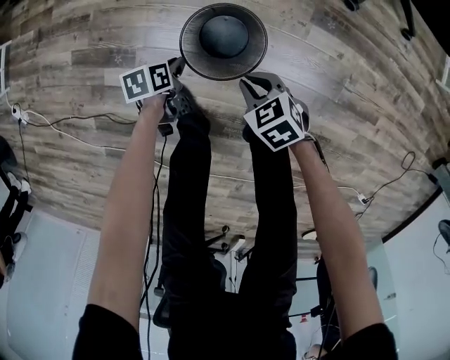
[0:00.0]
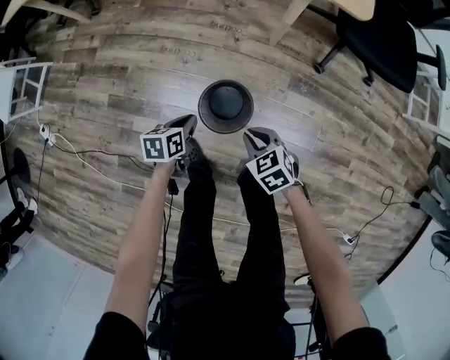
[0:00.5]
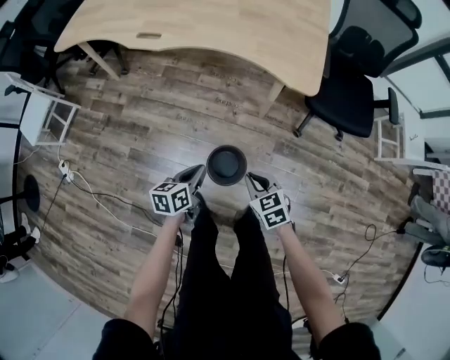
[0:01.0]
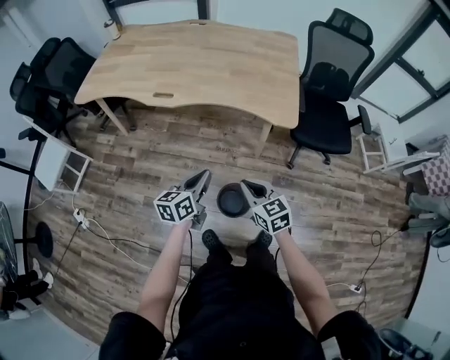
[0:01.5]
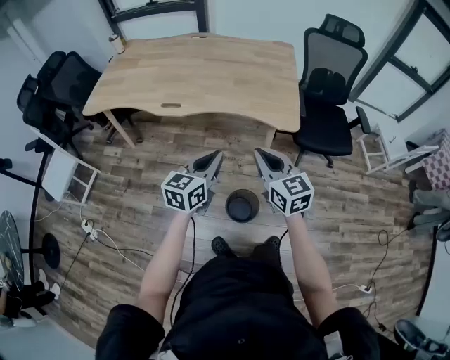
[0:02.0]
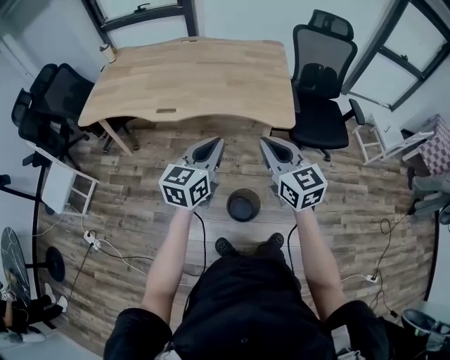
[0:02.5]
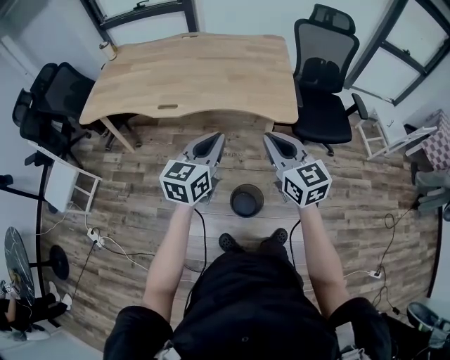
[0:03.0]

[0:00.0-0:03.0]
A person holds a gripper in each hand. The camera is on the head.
0:00.0 to 0:01.5: The grippers both shift upward by about 60 cm. The left gripper tilts its fingers some 40 degrees upward, while the right gripper points its fingers some 30 degrees further upward.
0:01.5 to 0:03.0: The two grippers go roughly 20 cm upward. The left gripper turns by about 30 degrees, while the right gripper turns by roughly 20 degrees.

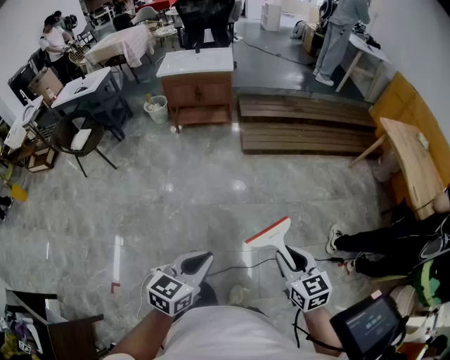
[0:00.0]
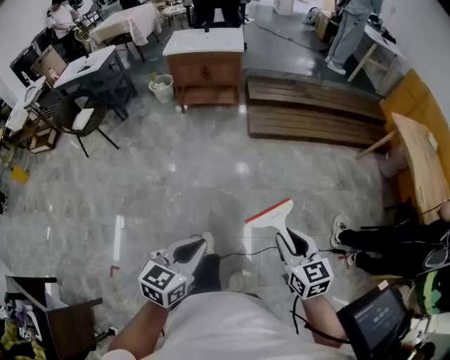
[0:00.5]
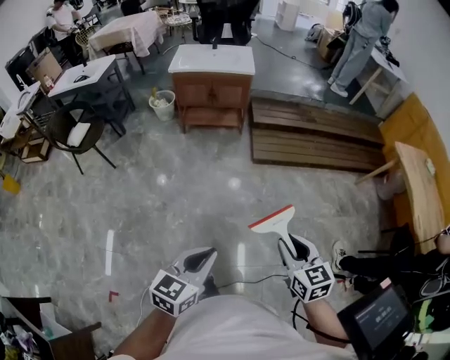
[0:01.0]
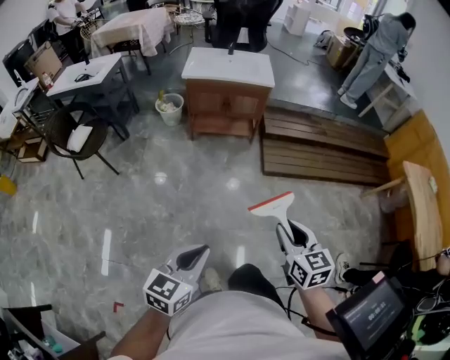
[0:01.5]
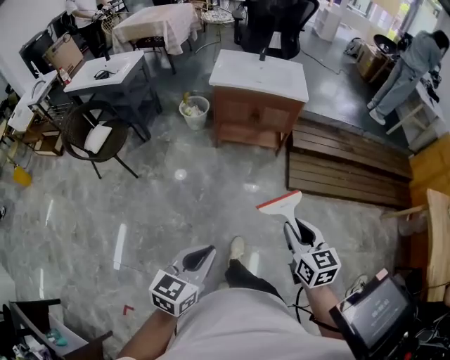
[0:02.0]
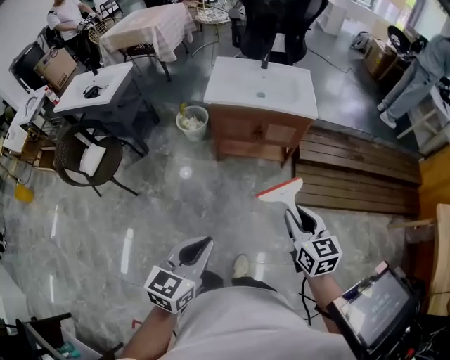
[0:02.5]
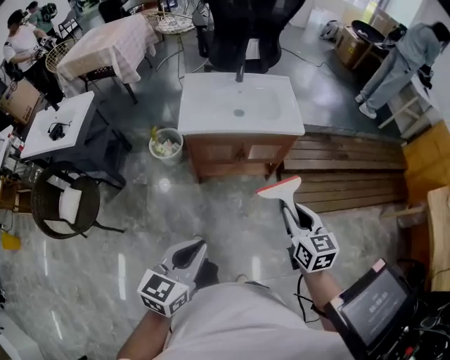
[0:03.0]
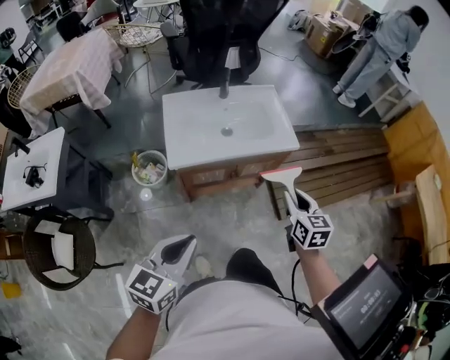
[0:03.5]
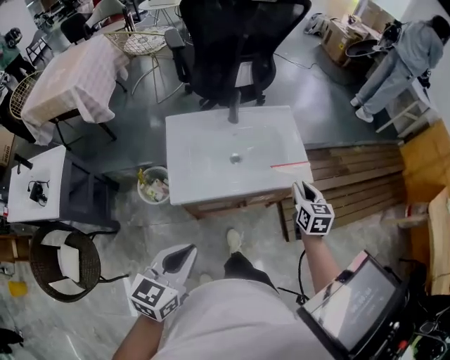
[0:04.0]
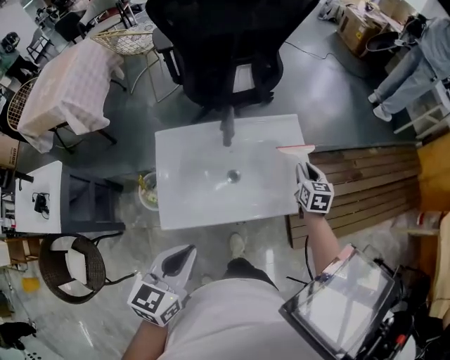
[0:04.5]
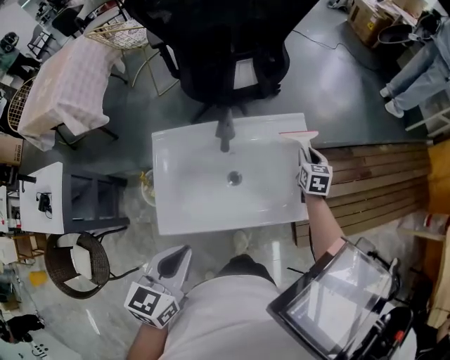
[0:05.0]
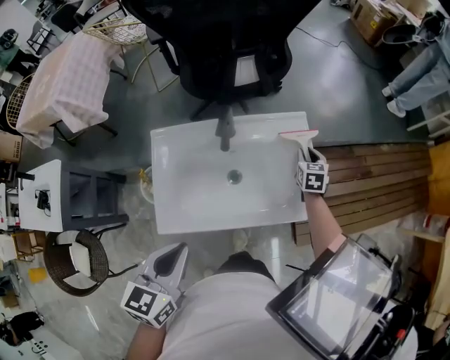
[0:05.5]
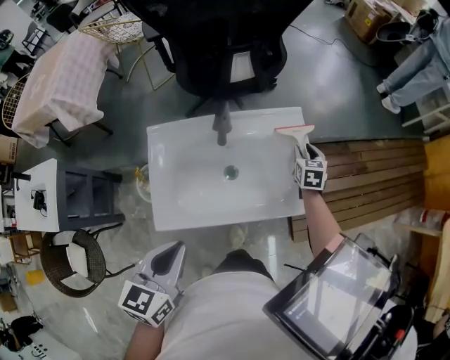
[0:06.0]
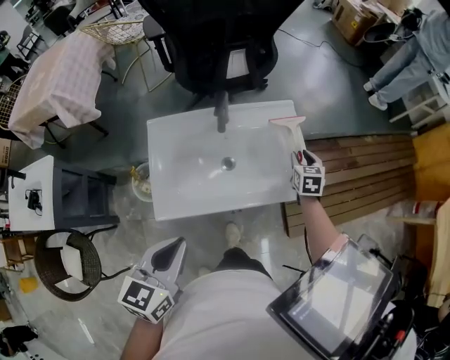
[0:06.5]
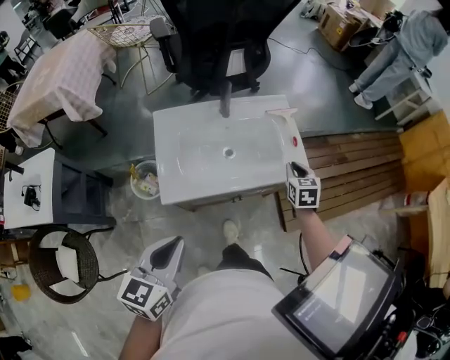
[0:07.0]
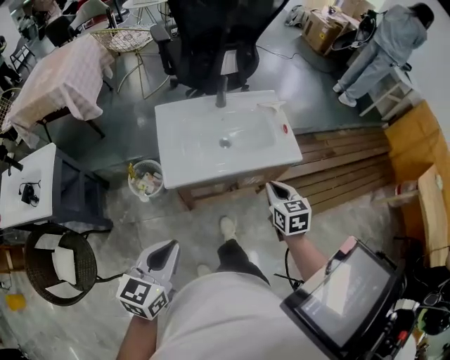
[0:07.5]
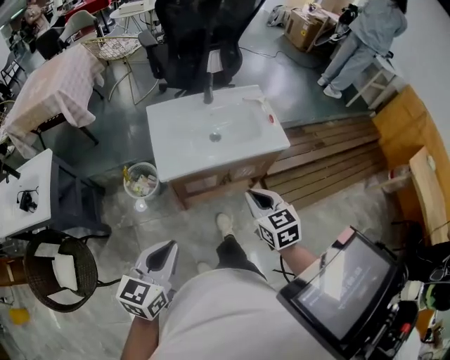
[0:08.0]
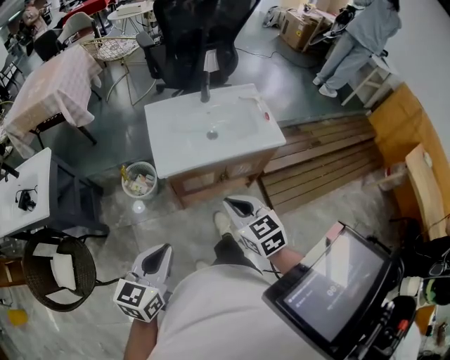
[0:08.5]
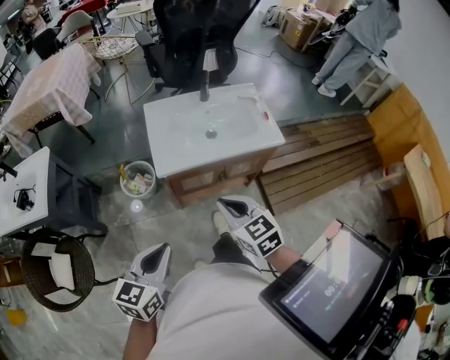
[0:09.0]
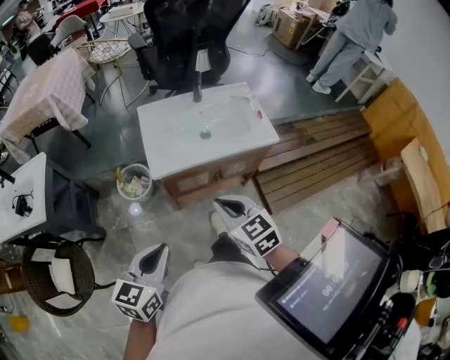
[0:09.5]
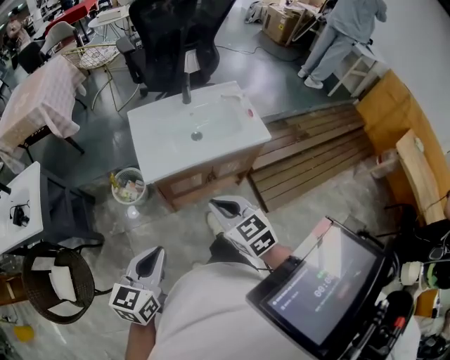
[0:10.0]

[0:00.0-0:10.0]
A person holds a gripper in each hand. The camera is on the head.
0:00.0 to 0:02.0: The pair of grippers is taken forward and to the left, roughly 60 cm.
0:02.0 to 0:04.0: Both grippers are carried forward, approximately 90 cm. The right gripper changes its angle by approximately 30 degrees.
0:04.0 to 0:06.0: Both grippers travel together forward, about 30 cm.
0:06.0 to 0:08.0: The left gripper heads backward, covering some 40 cm. The right gripper is displaced backward by roughly 60 cm, swivels approximately 20 degrees, and closes up.
0:08.0 to 0:10.0: The right gripper travels to the left by about 5 cm.

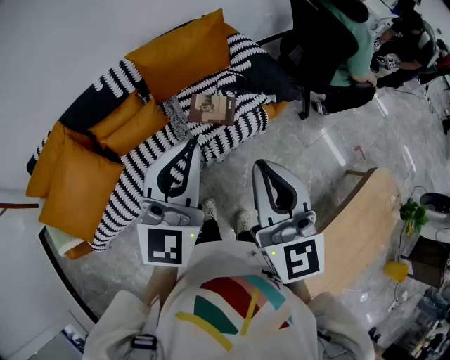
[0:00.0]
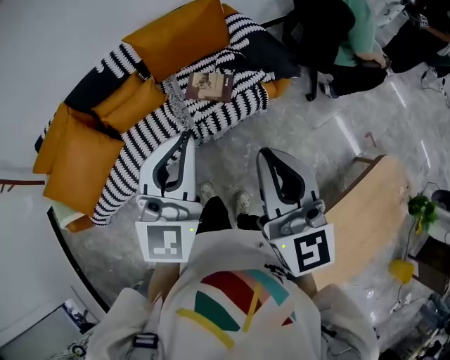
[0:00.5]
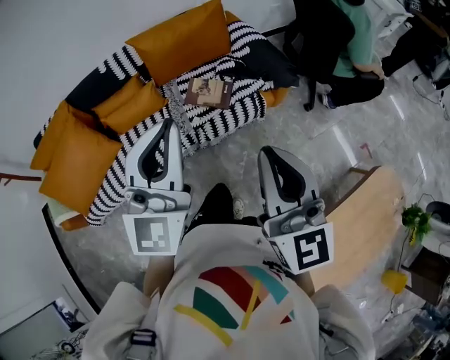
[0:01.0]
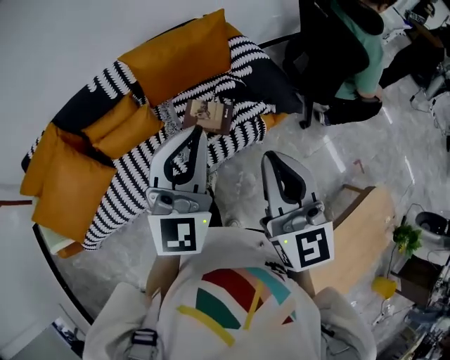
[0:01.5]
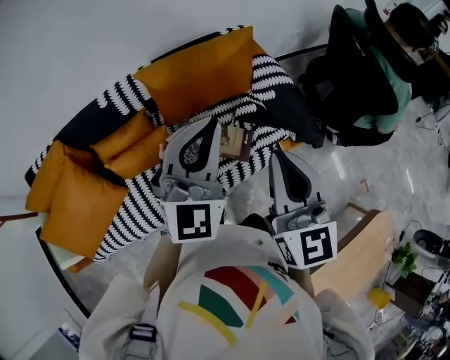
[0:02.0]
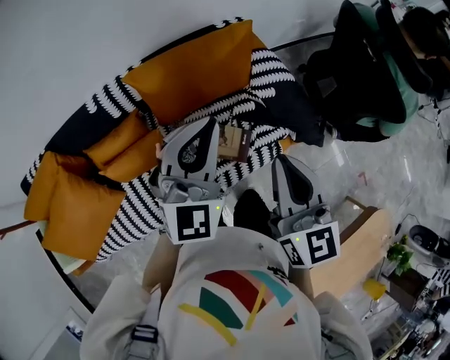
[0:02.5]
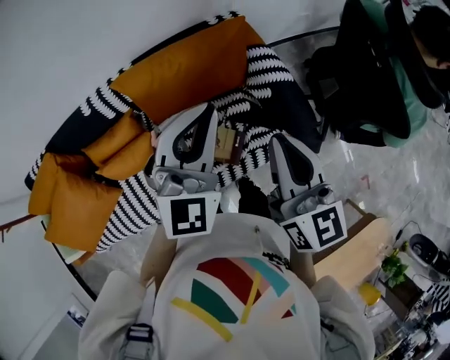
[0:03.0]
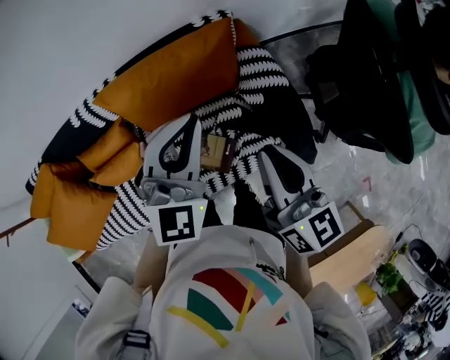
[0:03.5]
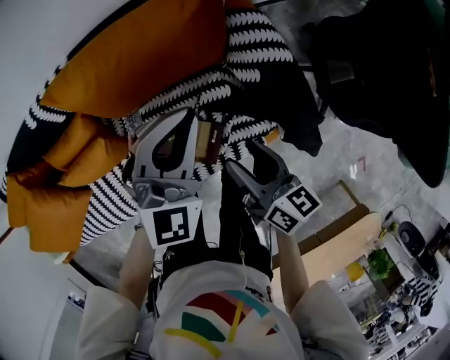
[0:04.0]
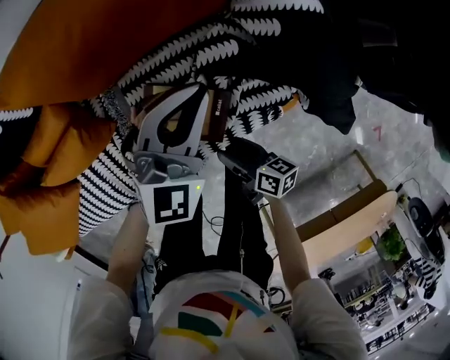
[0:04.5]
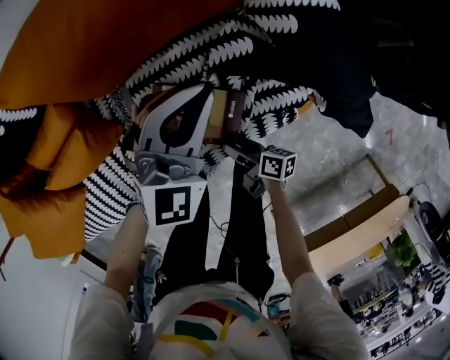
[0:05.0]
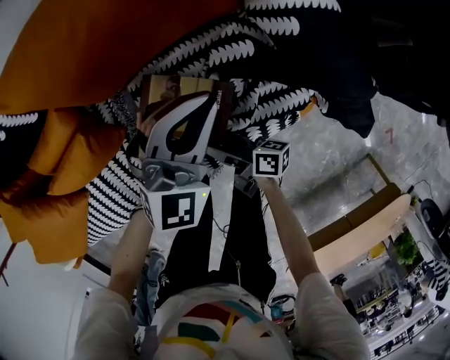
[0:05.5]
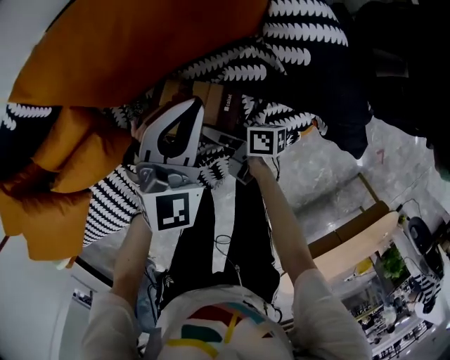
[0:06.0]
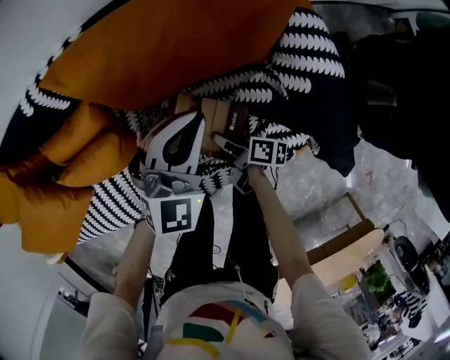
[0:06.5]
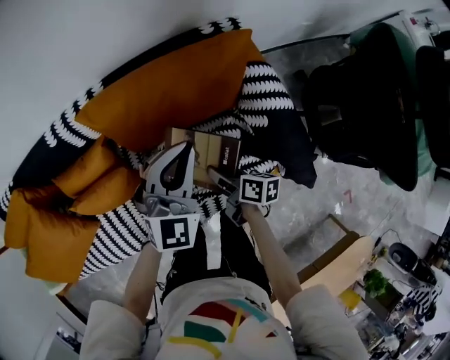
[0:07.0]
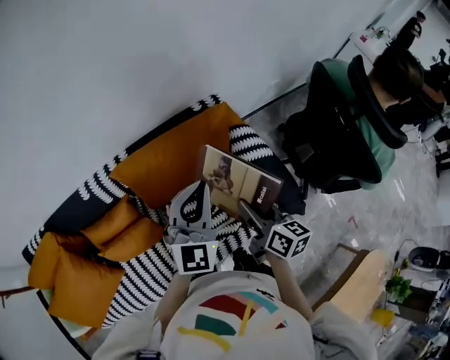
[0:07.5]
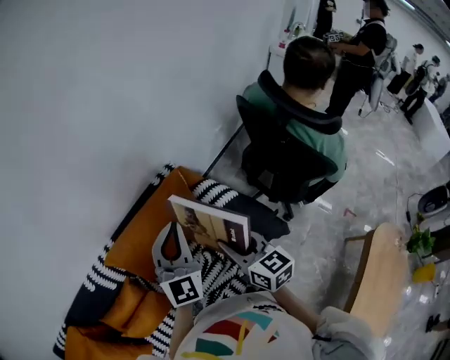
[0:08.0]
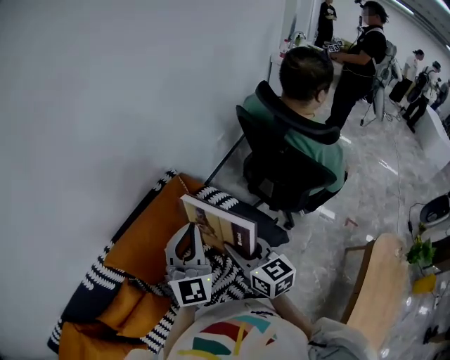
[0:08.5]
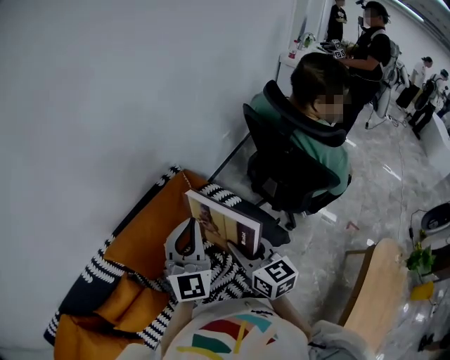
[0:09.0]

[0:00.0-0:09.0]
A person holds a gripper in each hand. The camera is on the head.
0:00.0 to 0:02.0: The grippers both shift forward by roughly 25 cm.
0:02.0 to 0:04.5: The right gripper shifts about 60 cm downward, turns by roughly 70 degrees, and opens up; the left gripper travels downward, forward and to the right by some 40 cm, and turns by approximately 20 degrees.
0:04.5 to 0:07.0: The right gripper moves forward and upward, approximately 25 cm, and closes; the left gripper is displaced upward and to the left by roughly 20 cm.
0:07.0 to 0:09.0: The left gripper goes approximately 20 cm upward. Meanwhile the right gripper travels upward by approximately 30 cm, and changes its angle by approximately 60 degrees.

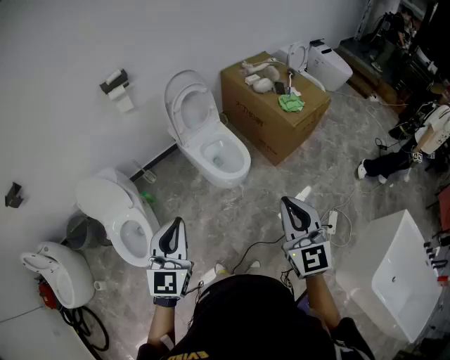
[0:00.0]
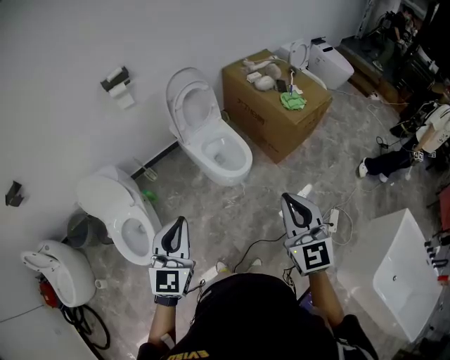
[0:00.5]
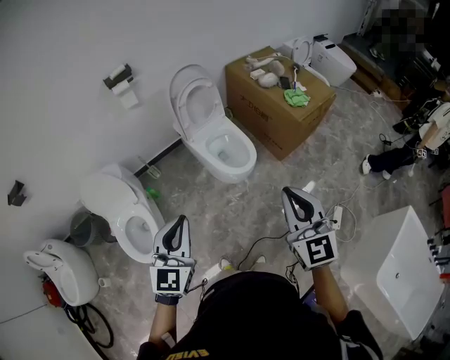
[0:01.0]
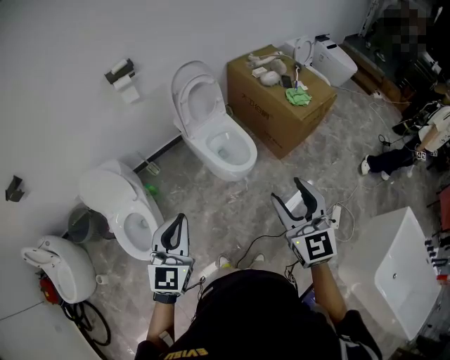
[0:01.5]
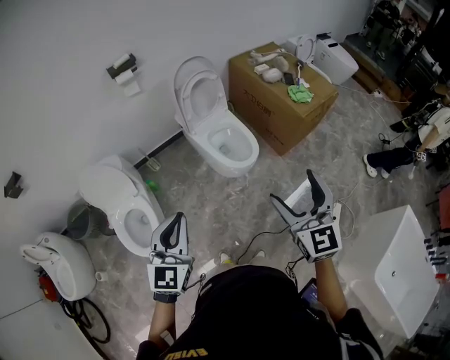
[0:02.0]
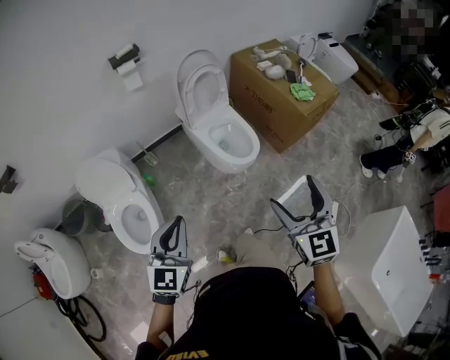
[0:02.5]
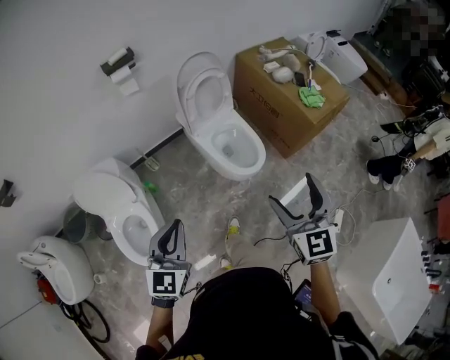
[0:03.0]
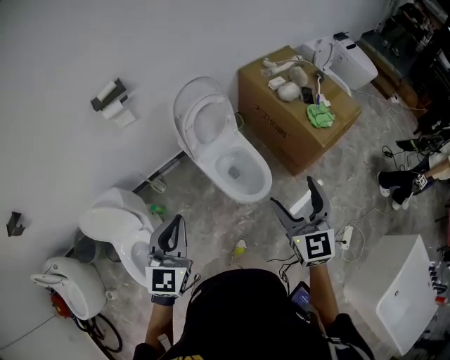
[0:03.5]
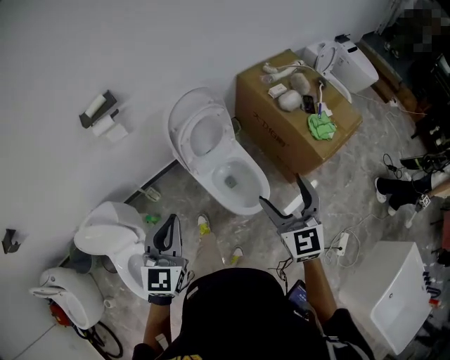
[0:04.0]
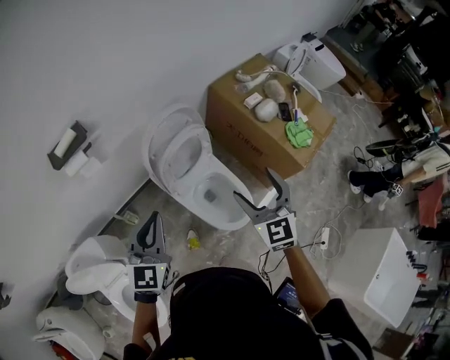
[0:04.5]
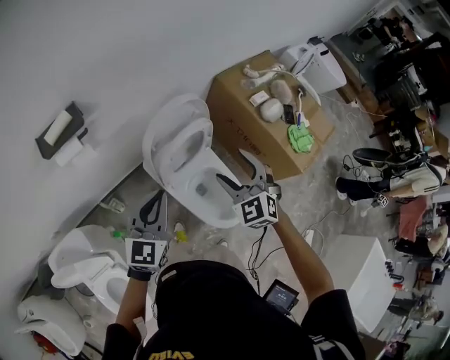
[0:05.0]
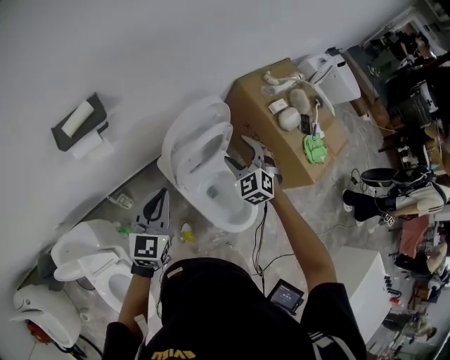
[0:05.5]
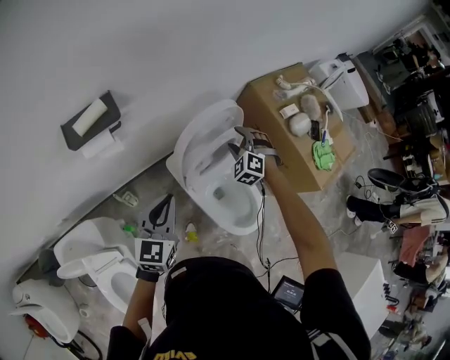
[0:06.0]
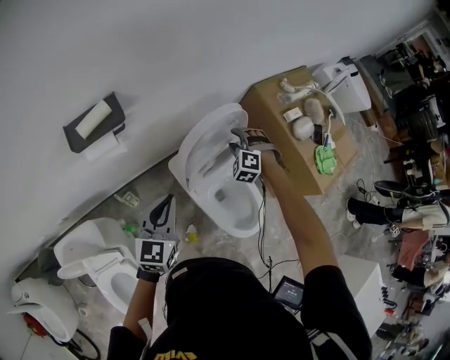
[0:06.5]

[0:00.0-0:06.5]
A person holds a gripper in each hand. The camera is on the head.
0:00.0 to 0:02.0: The left gripper is displaced to the left by about 5 cm, while the right gripper opens.
0:02.0 to 0:04.5: The pair of grippers is taken forward, some 50 cm.
0:04.5 to 0:06.5: The right gripper shifts about 40 cm forward, downward and to the left, twists roughly 60 degrees counterclockwise, seen from behind, and closes its fingers. Meanwhile the left gripper heads downward, to the left and forward, covering approximately 15 cm.
